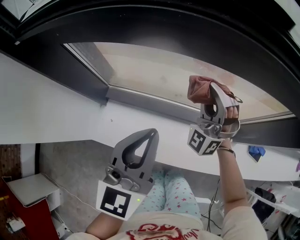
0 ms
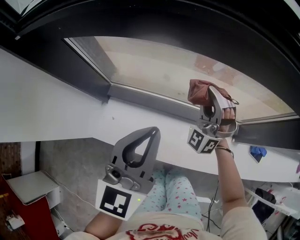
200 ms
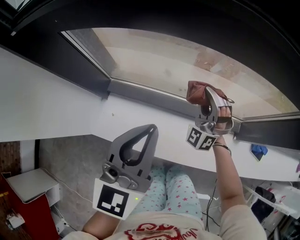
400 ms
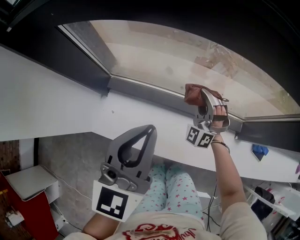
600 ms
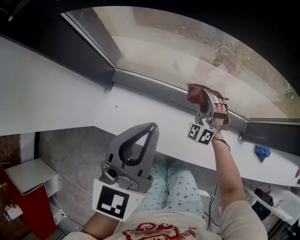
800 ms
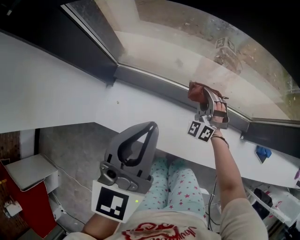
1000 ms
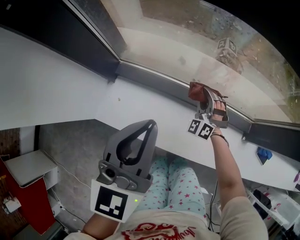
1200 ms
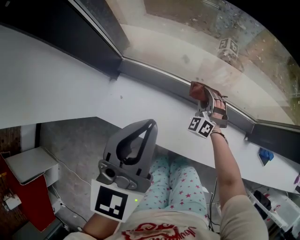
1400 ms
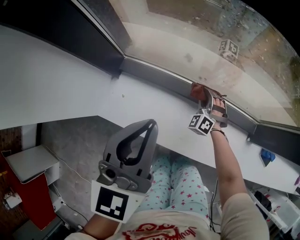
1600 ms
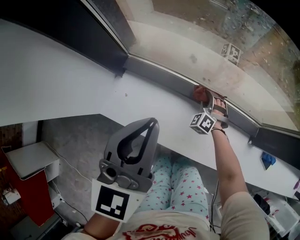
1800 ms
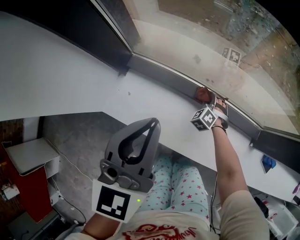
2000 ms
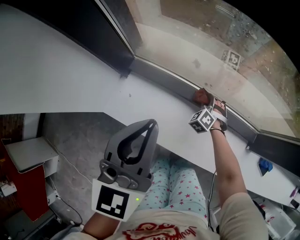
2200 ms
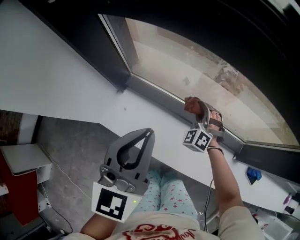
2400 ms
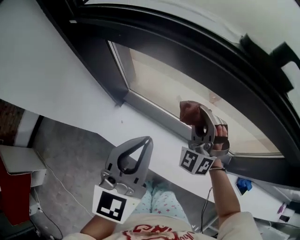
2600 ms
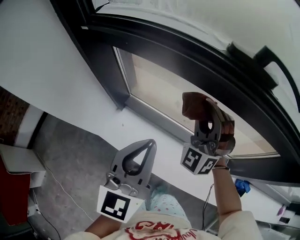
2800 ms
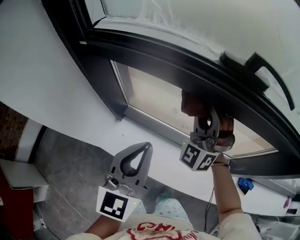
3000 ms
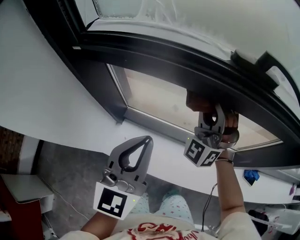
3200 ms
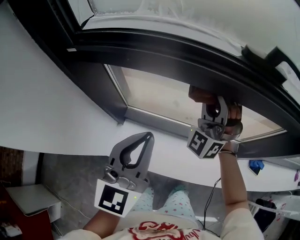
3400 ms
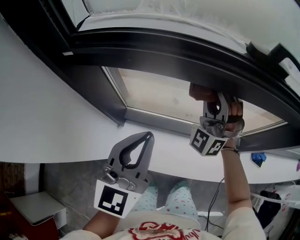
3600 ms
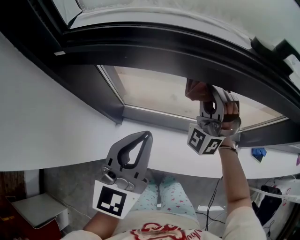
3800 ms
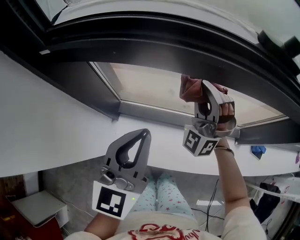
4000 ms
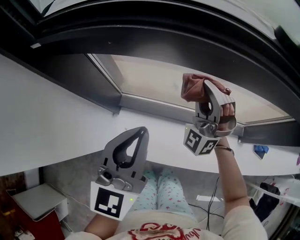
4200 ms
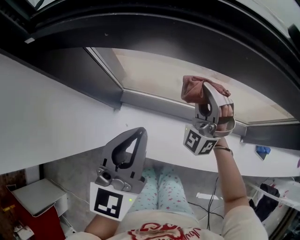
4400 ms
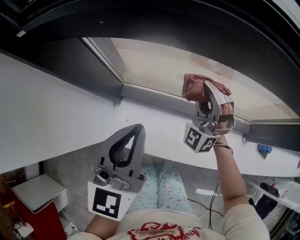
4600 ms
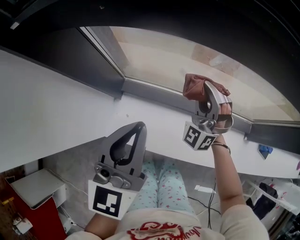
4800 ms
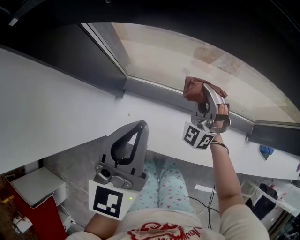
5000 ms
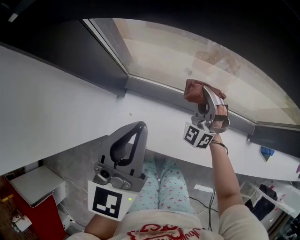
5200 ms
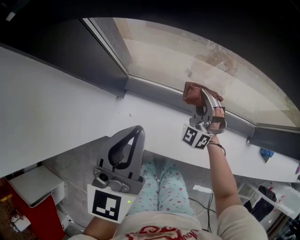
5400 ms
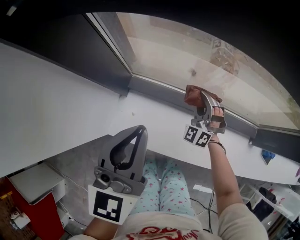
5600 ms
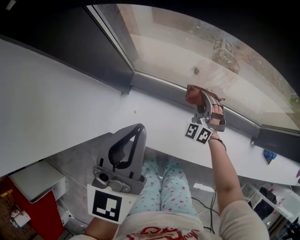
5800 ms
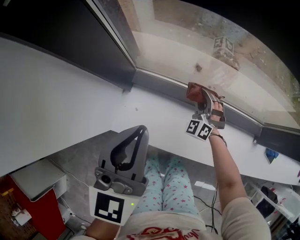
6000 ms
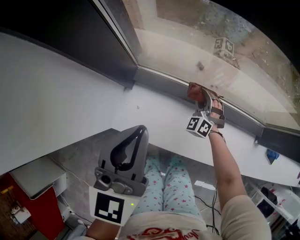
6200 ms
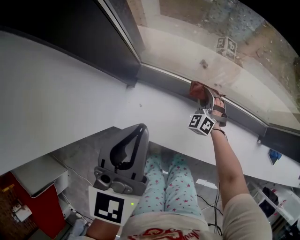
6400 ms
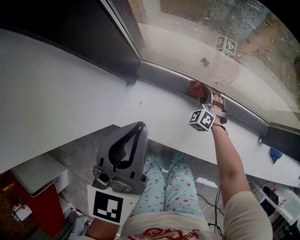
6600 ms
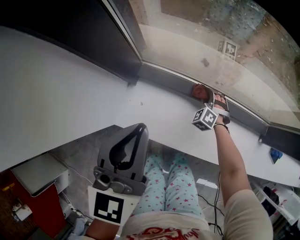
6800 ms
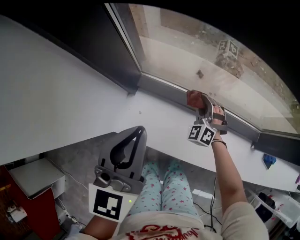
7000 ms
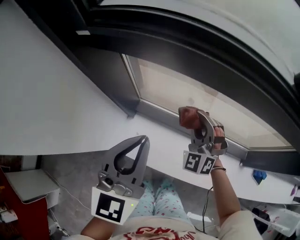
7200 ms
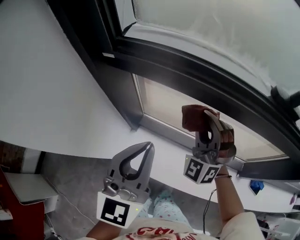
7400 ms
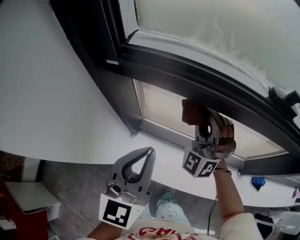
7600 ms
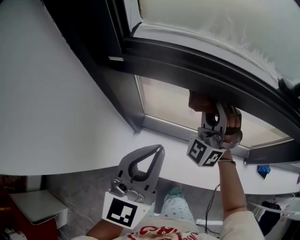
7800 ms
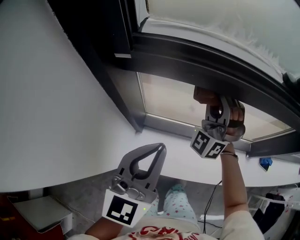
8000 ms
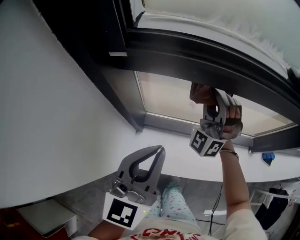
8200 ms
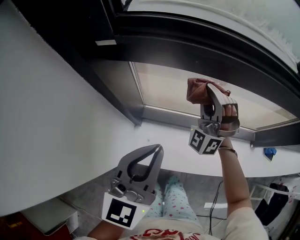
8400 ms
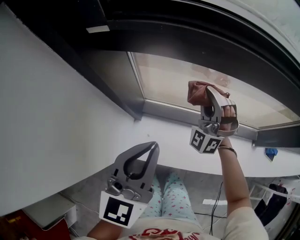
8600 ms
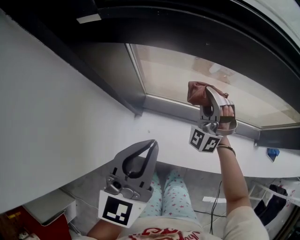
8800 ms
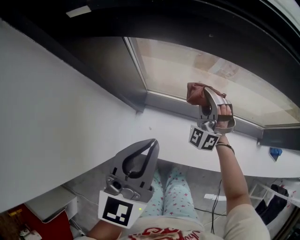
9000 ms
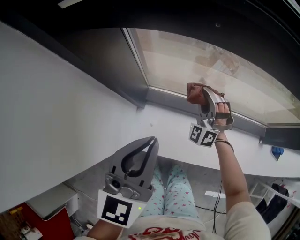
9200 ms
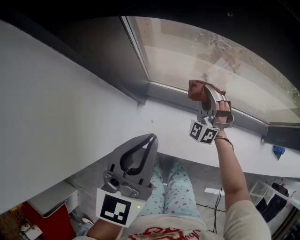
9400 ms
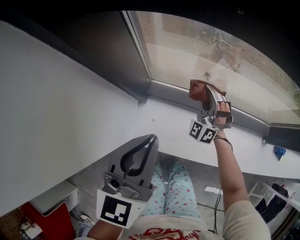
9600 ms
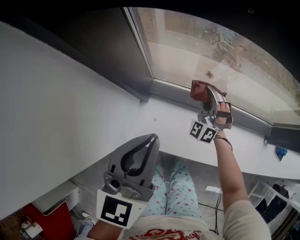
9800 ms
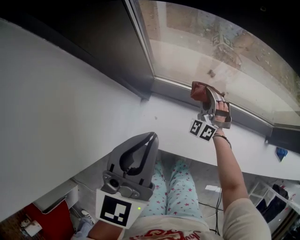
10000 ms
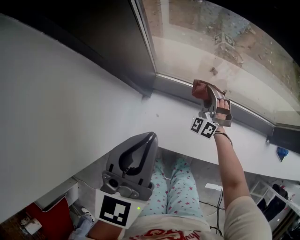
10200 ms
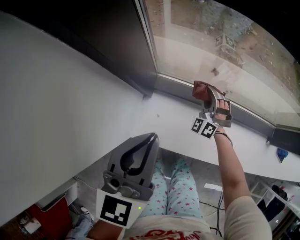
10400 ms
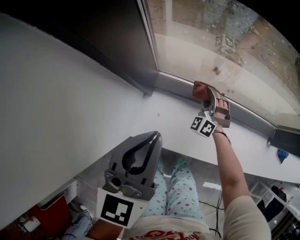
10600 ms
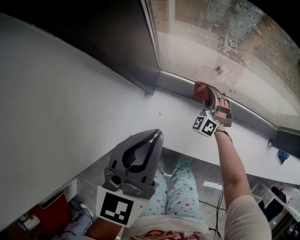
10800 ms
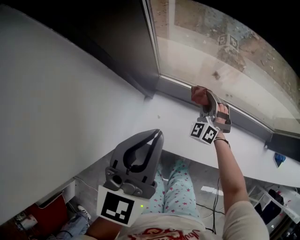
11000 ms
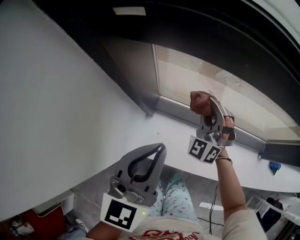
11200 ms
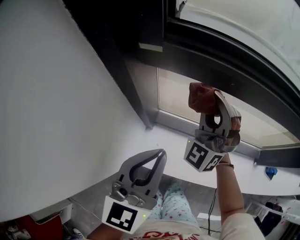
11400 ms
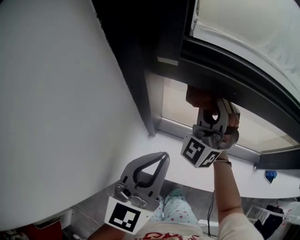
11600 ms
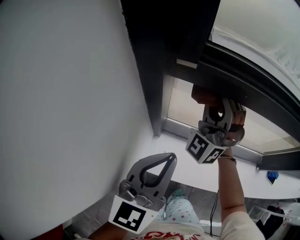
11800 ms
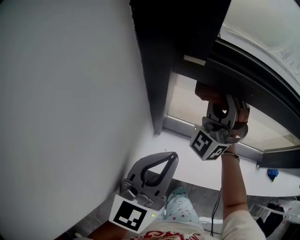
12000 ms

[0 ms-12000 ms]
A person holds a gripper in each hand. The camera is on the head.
0 ms to 1600 ms: The right gripper shifts approximately 35 cm downward, and points its fingers about 40 degrees further downward; the left gripper heads to the left and downward, covering roughly 10 cm.
1600 ms to 3000 ms: The left gripper goes about 15 cm upward. The right gripper goes approximately 50 cm upward, and angles its fingers upward, by approximately 40 degrees.
3000 ms to 4400 ms: The right gripper moves downward, about 15 cm. Meanwhile the left gripper shifts approximately 10 cm to the left, downward and forward.
4400 ms to 6000 ms: The right gripper is displaced downward by some 25 cm, and turns by roughly 30 degrees. The left gripper moves downward, approximately 5 cm.
6000 ms to 7600 ms: The right gripper moves upward, some 40 cm, and turns by roughly 30 degrees; the left gripper goes about 15 cm upward.
7600 ms to 9000 ms: The right gripper moves downward, approximately 20 cm, while the left gripper is displaced downward and to the left by about 10 cm.
9000 ms to 10400 ms: The right gripper goes roughly 15 cm downward. The left gripper ends up about 5 cm from where it was.
10400 ms to 12000 ms: The left gripper heads upward, covering about 10 cm. Meanwhile the right gripper heads upward, covering roughly 40 cm, and tilts its fingers some 40 degrees upward.

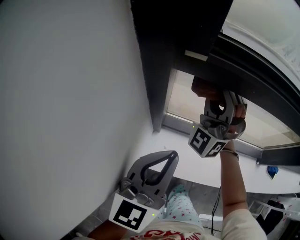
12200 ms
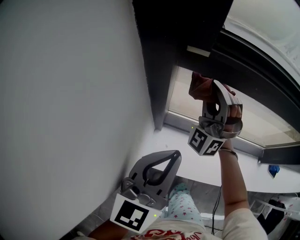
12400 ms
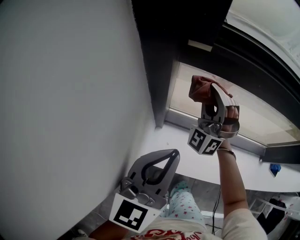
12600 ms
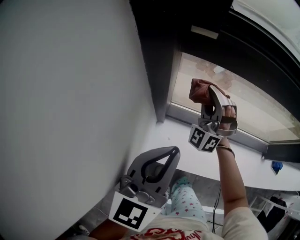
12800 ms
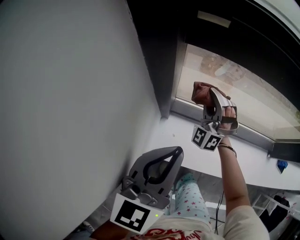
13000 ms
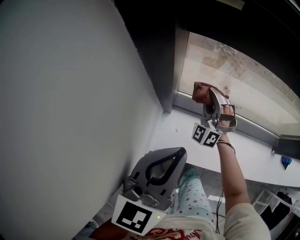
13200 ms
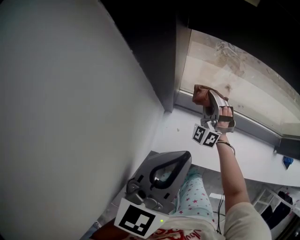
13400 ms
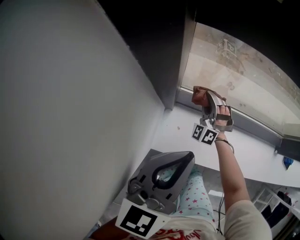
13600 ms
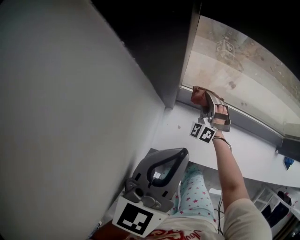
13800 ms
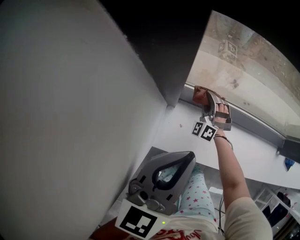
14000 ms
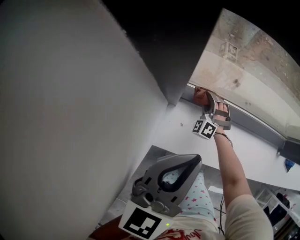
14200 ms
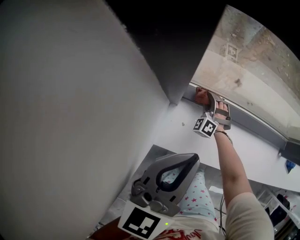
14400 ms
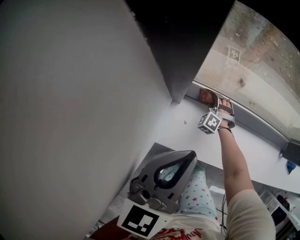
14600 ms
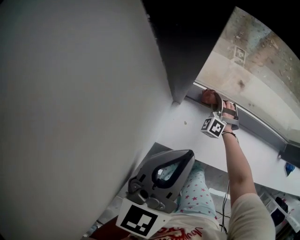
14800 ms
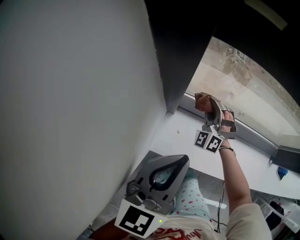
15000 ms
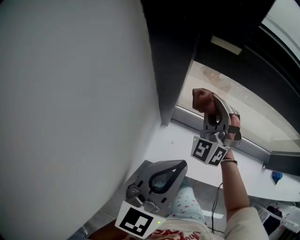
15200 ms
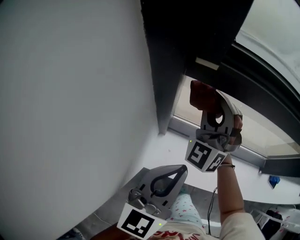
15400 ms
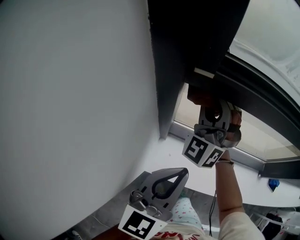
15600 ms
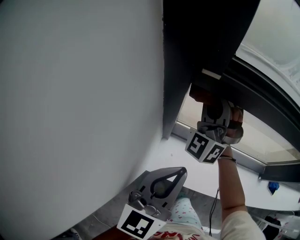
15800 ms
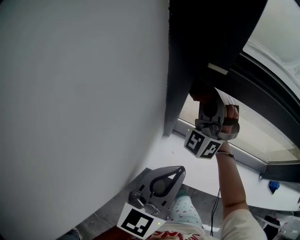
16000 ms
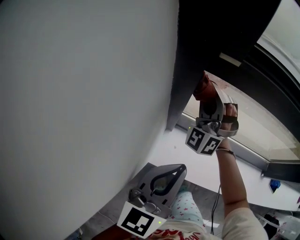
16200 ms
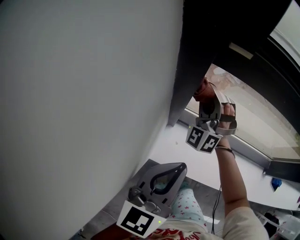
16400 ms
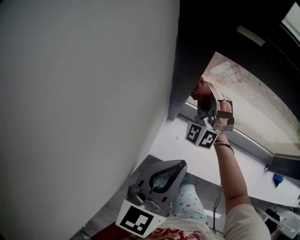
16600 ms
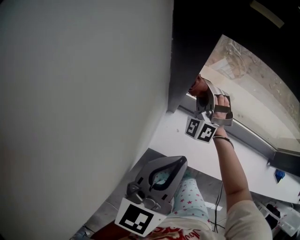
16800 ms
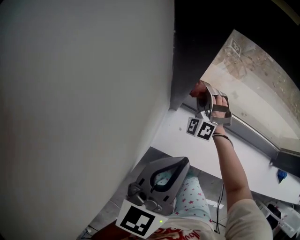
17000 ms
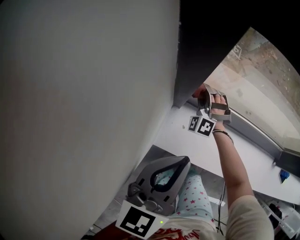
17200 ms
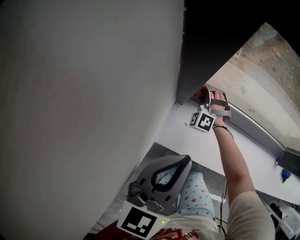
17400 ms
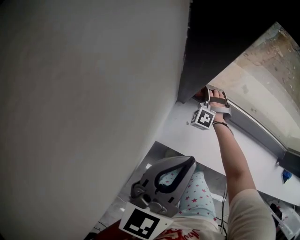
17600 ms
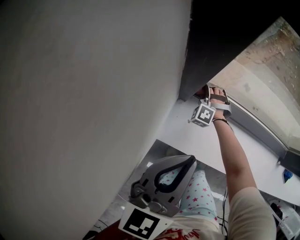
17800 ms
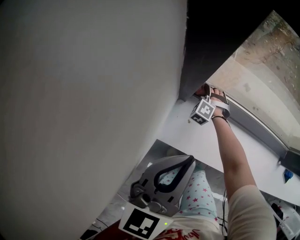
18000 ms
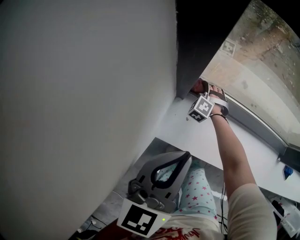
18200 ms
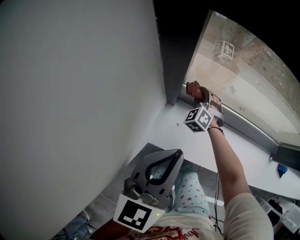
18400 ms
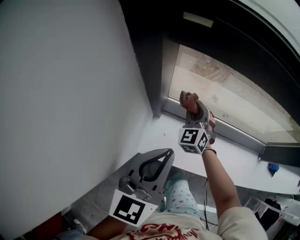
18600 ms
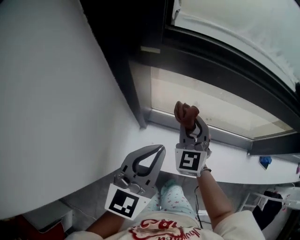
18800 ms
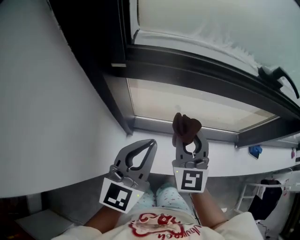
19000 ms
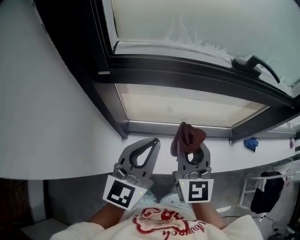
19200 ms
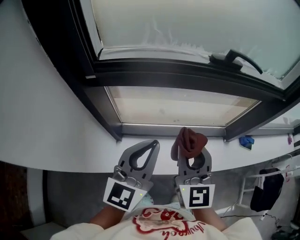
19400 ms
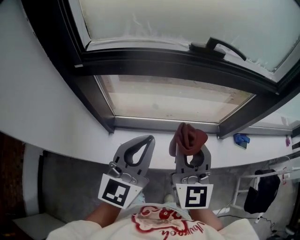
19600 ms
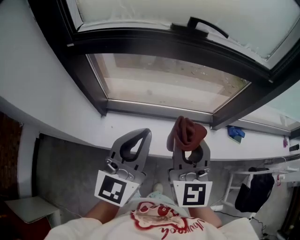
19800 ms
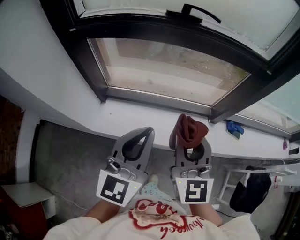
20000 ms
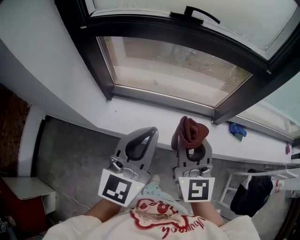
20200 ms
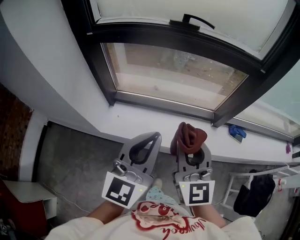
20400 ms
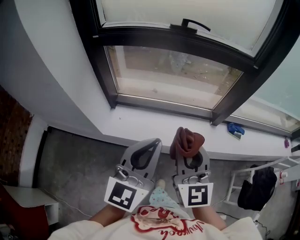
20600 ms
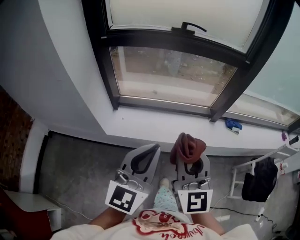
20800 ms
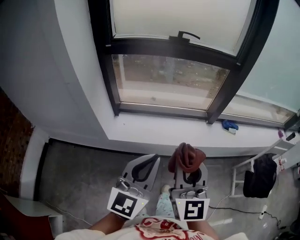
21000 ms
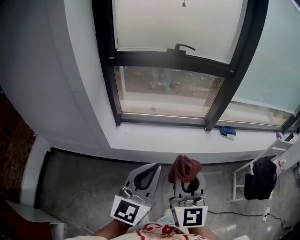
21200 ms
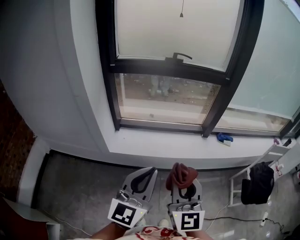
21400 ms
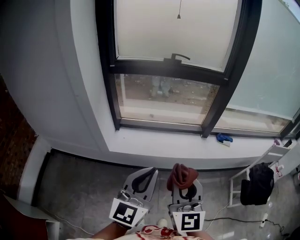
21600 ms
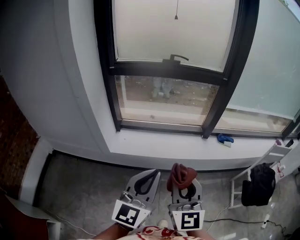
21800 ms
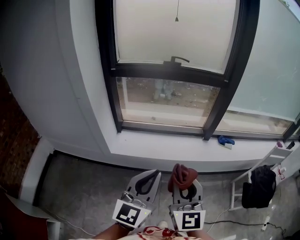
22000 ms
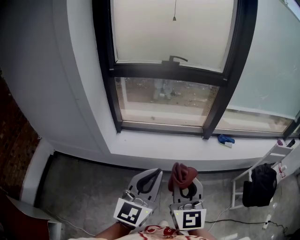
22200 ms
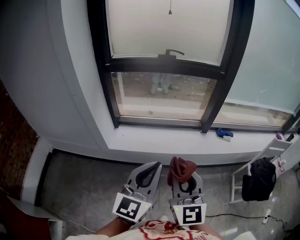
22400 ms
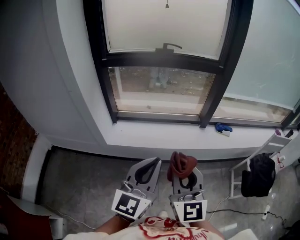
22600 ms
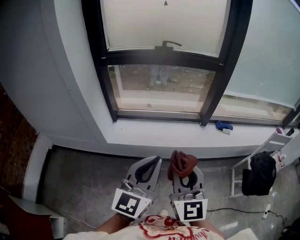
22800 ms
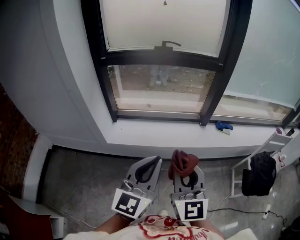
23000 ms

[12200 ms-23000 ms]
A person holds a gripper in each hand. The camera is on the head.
12200 ms to 13800 ms: The left gripper shifts approximately 5 cm downward; the right gripper travels downward by about 35 cm, and tilts its fingers approximately 40 degrees downward.
13800 ms to 15200 ms: The right gripper goes approximately 25 cm upward.
15200 ms to 16800 ms: The right gripper travels downward and to the left by approximately 10 cm.
16800 ms to 18400 ms: The right gripper goes about 15 cm downward, and swivels roughly 30 degrees.
18400 ms to 20000 ms: The right gripper is displaced upward, to the right and backward by some 70 cm, and angles its fingers upward, by about 40 degrees, while the left gripper heads to the right and upward, covering some 40 cm, and swivels some 20 degrees.
20000 ms to 21400 ms: The two grippers go approximately 35 cm backward.
21400 ms to 23000 ms: The two grippers go roughly 5 cm to the right.

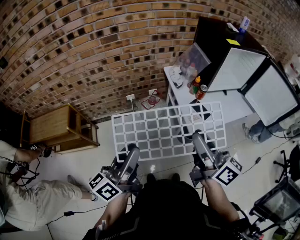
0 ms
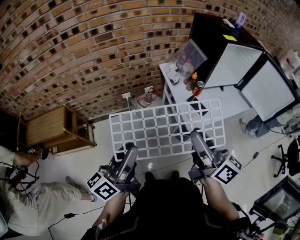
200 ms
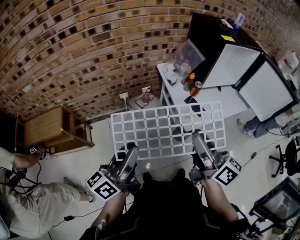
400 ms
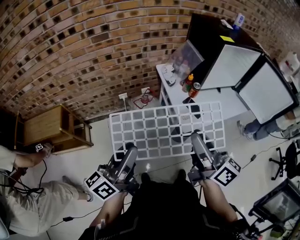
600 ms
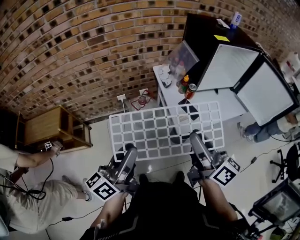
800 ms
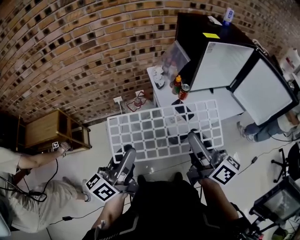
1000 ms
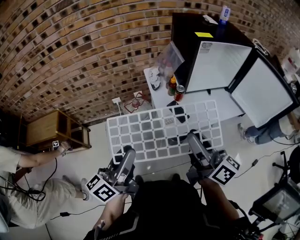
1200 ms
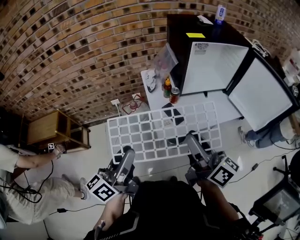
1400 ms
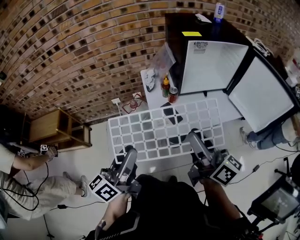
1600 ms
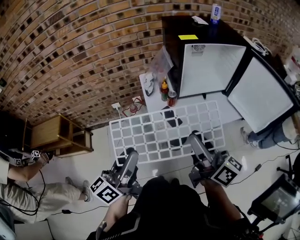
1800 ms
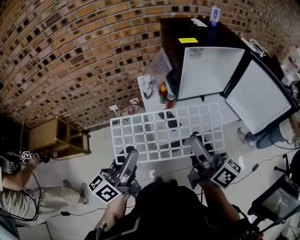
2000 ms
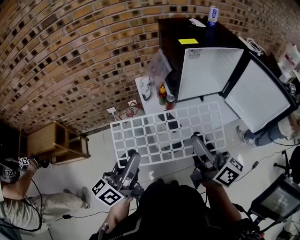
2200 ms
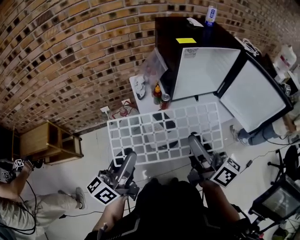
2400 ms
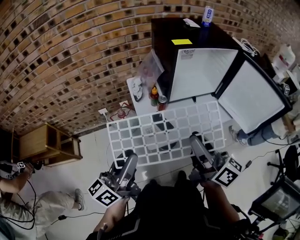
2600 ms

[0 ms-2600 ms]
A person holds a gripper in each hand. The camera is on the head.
0 ms to 1200 ms: The grippers both shift to the right by about 15 cm.
1200 ms to 2600 ms: The right gripper moves to the right, some 10 cm. Meanwhile the left gripper shifts about 10 cm to the right and forward.
